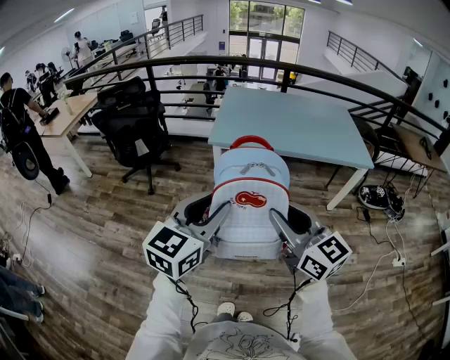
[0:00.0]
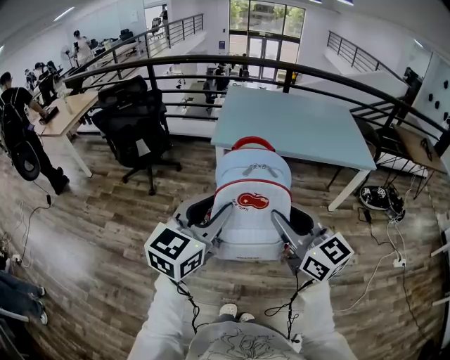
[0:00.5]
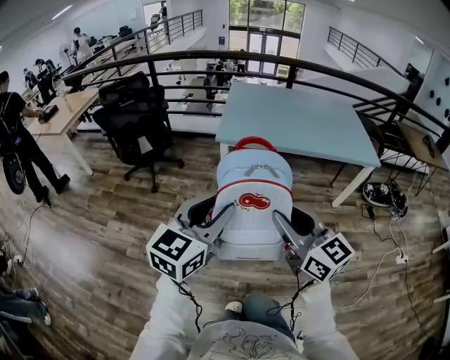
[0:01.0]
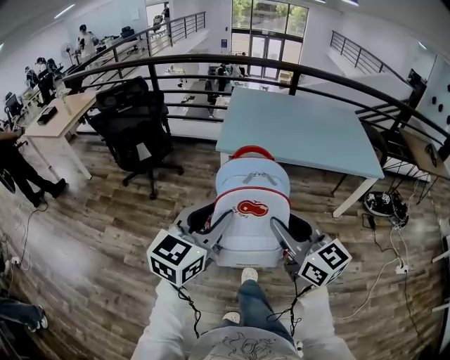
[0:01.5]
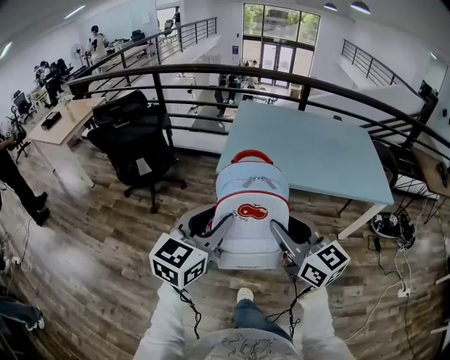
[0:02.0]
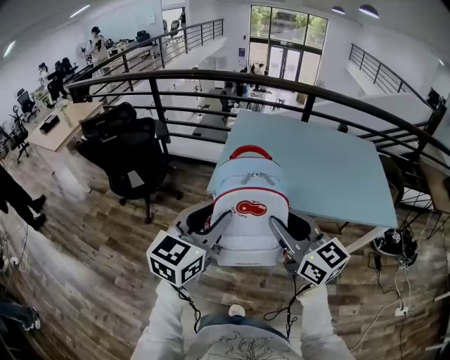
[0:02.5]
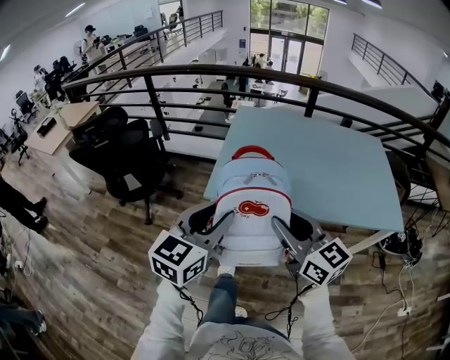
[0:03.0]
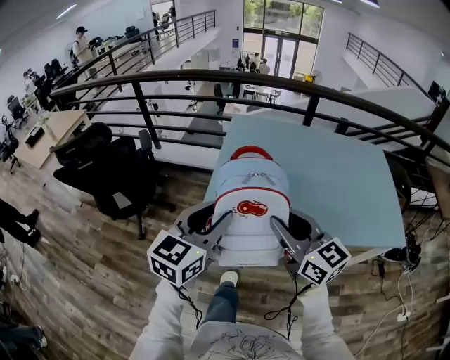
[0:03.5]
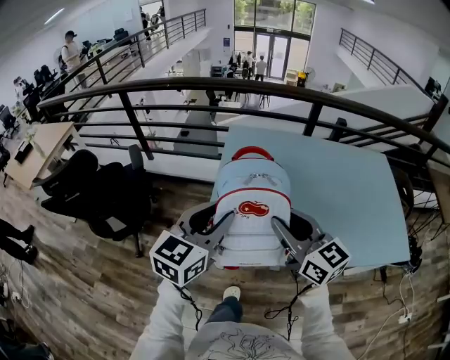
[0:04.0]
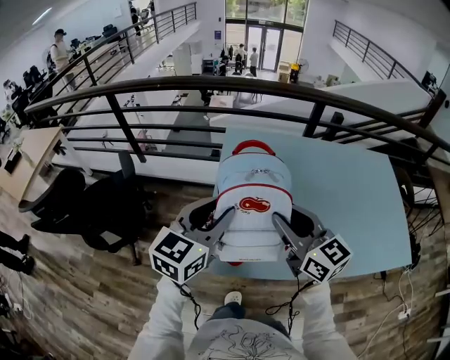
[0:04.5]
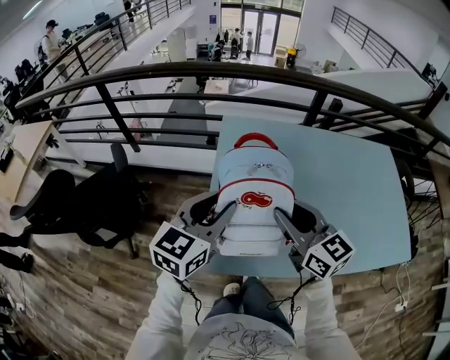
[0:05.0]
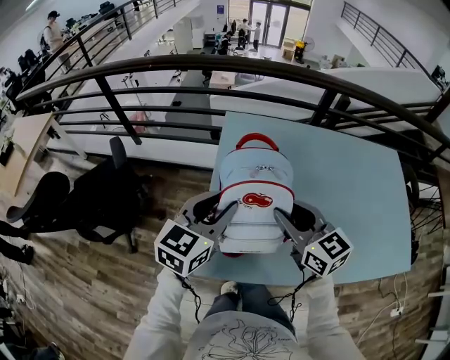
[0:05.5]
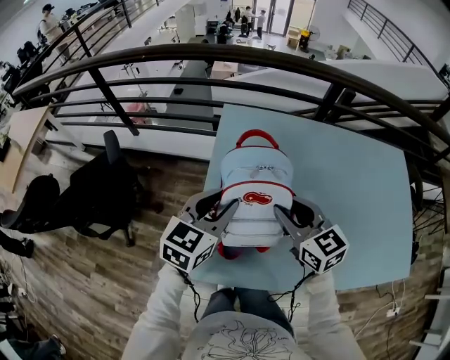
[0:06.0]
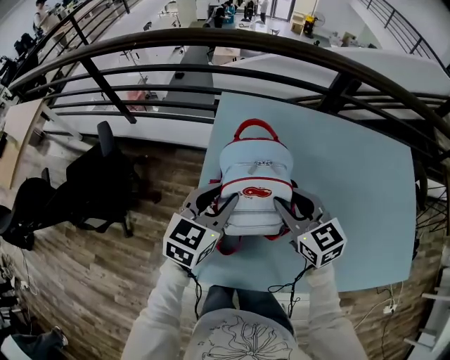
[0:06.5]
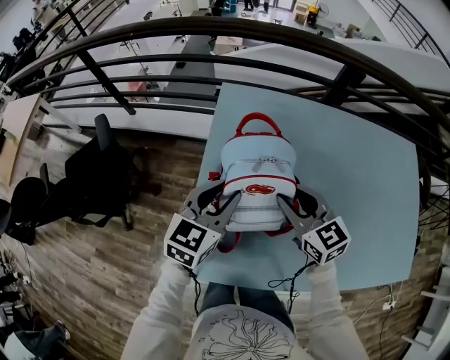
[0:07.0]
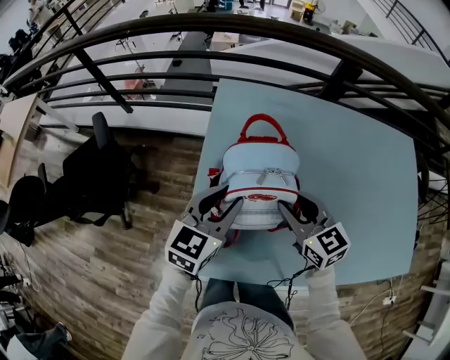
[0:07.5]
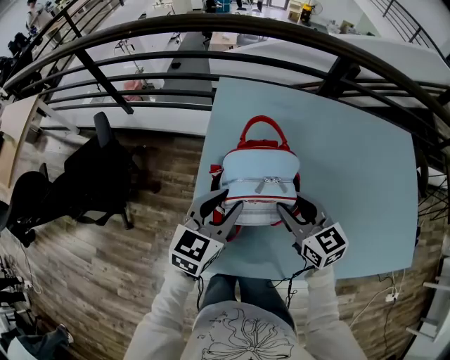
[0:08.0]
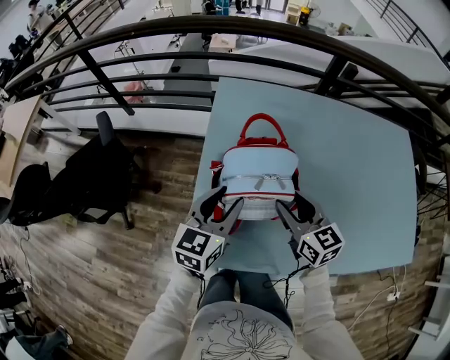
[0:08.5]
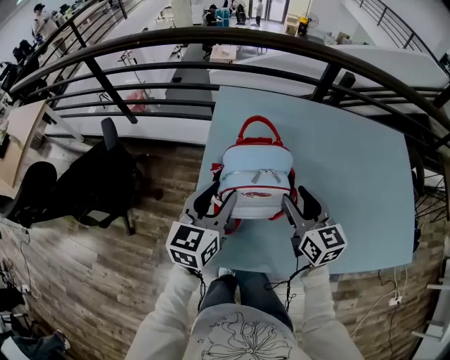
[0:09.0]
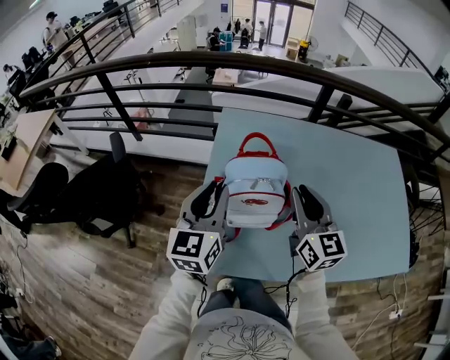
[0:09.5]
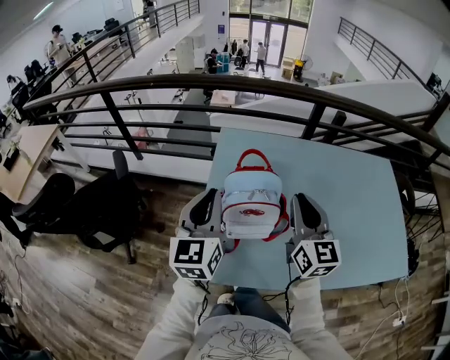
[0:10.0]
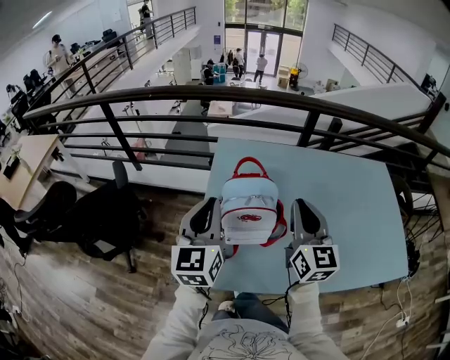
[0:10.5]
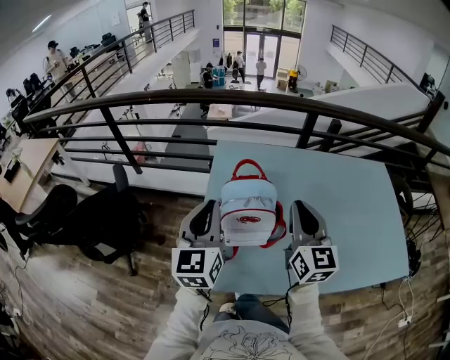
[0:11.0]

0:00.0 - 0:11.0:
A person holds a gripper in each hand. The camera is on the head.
0:00.0 - 0:02.0: Both grippers travel together forward, some 25 cm.
0:02.0 - 0:03.5: The grippers both shift forward by some 35 cm.
0:03.5 - 0:05.5: The grippers both shift forward by some 35 cm.
0:05.5 - 0:07.5: Both grippers travel together downward and forward, roughly 15 cm.
0:07.5 - 0:09.0: The right gripper moves some 5 cm. Meanwhile the left gripper shifts by roughly 5 cm.
0:09.0 - 0:11.0: Both grippers travel together upward, some 15 cm. The right gripper turns by some 20 degrees, and closes. Meanwhile the left gripper turns by roughly 20 degrees, and closes.

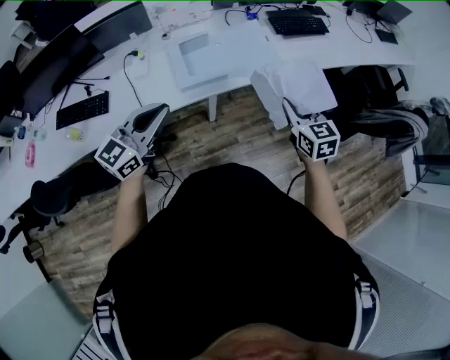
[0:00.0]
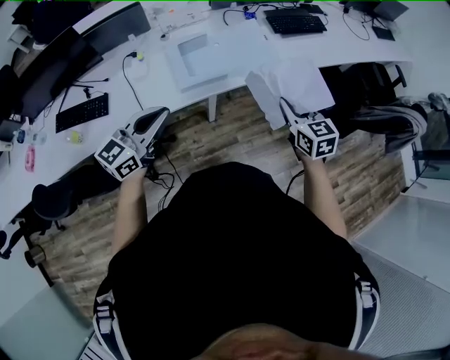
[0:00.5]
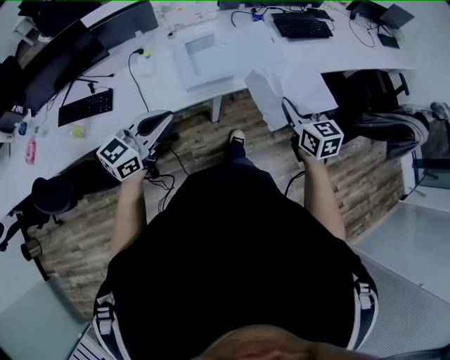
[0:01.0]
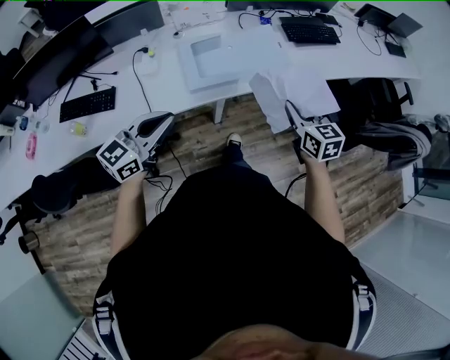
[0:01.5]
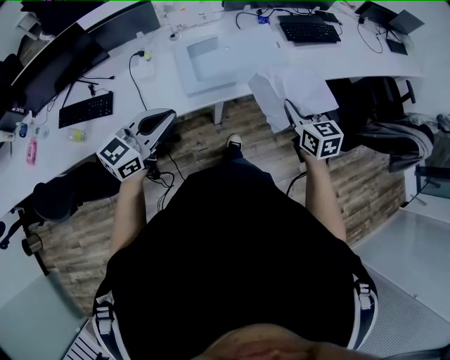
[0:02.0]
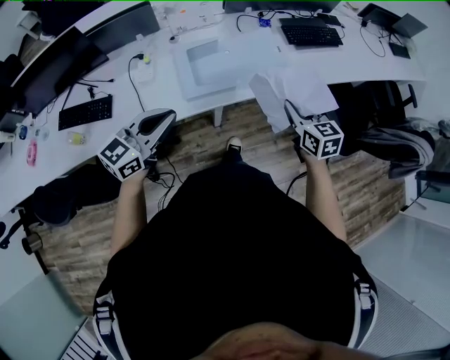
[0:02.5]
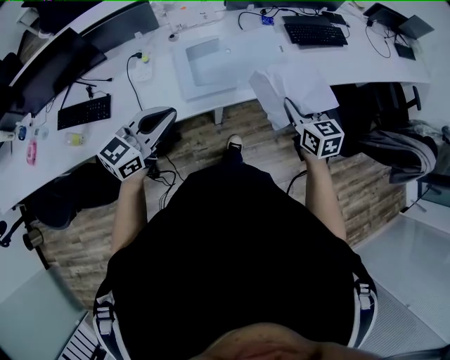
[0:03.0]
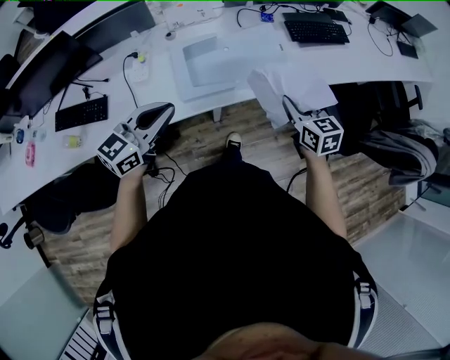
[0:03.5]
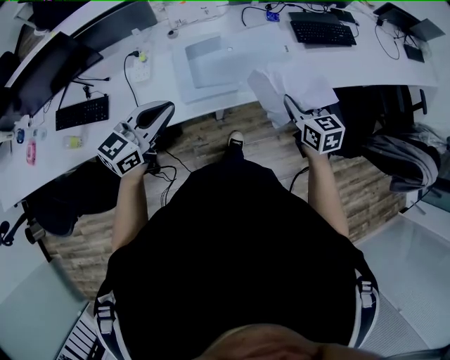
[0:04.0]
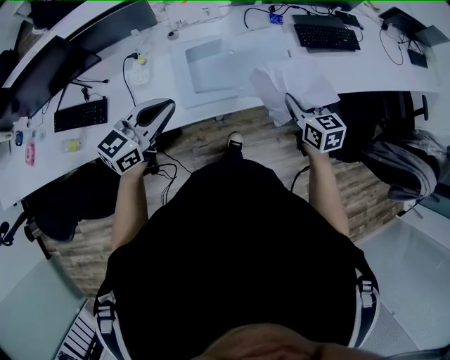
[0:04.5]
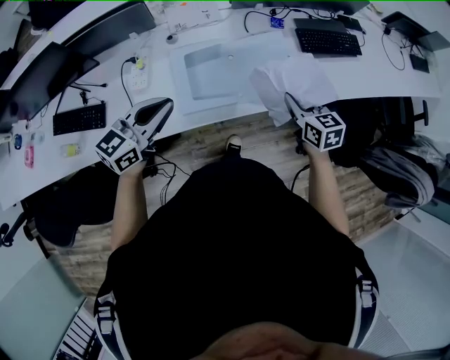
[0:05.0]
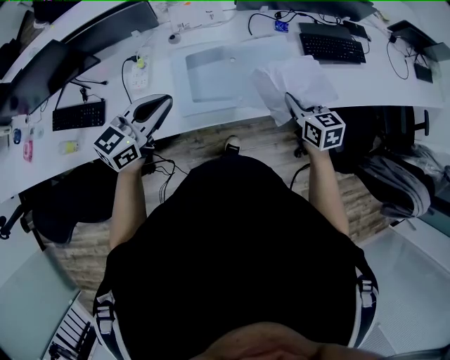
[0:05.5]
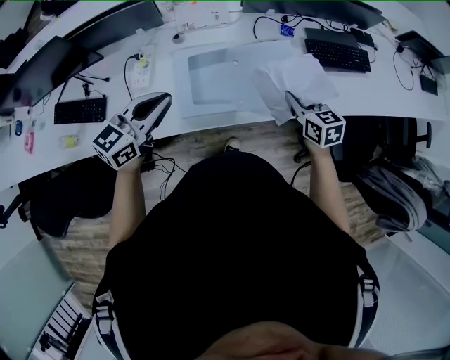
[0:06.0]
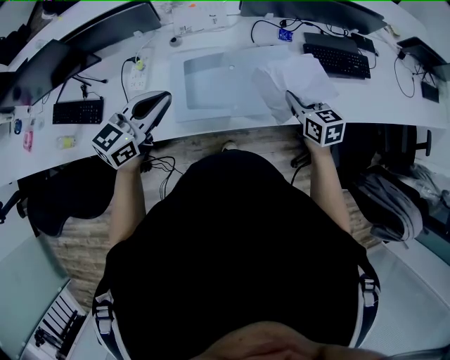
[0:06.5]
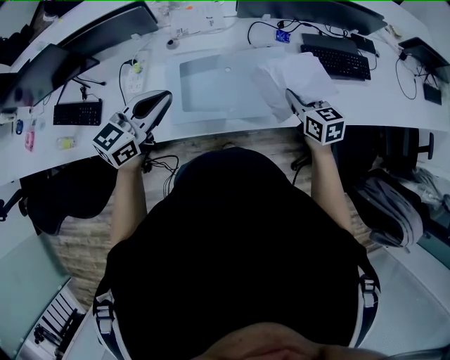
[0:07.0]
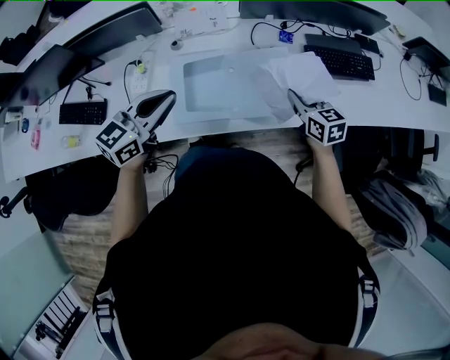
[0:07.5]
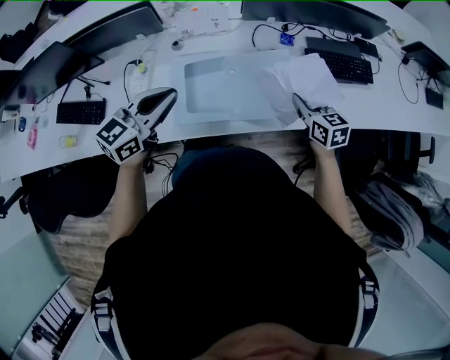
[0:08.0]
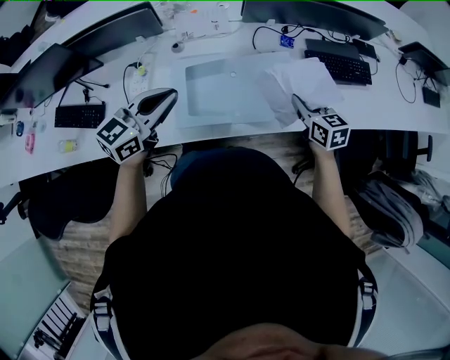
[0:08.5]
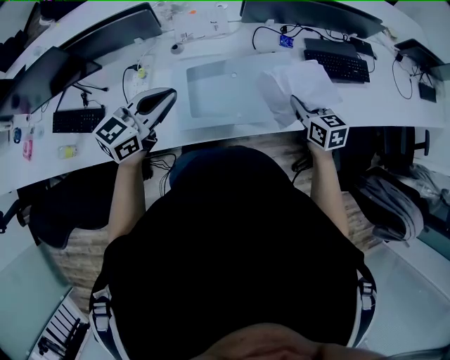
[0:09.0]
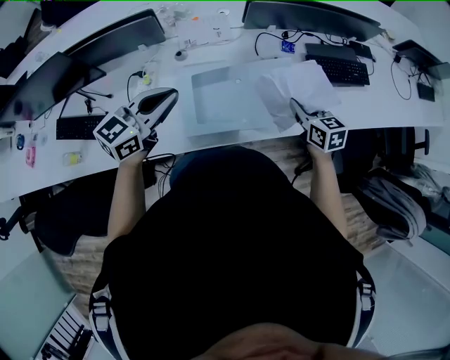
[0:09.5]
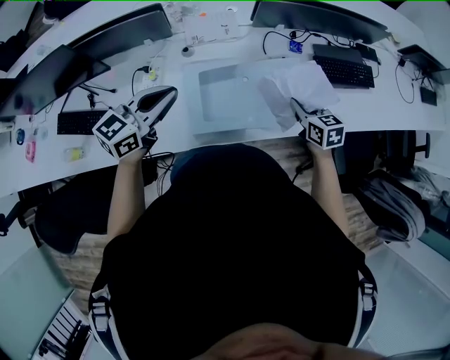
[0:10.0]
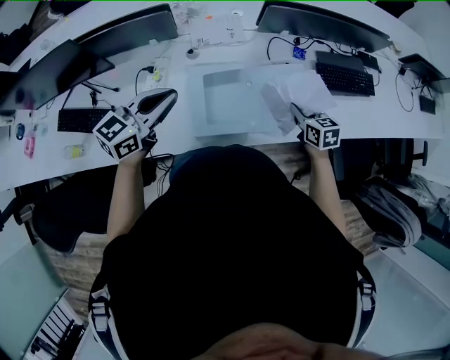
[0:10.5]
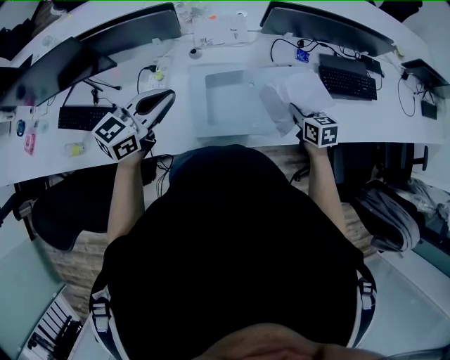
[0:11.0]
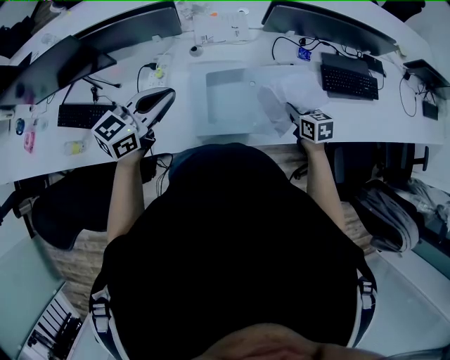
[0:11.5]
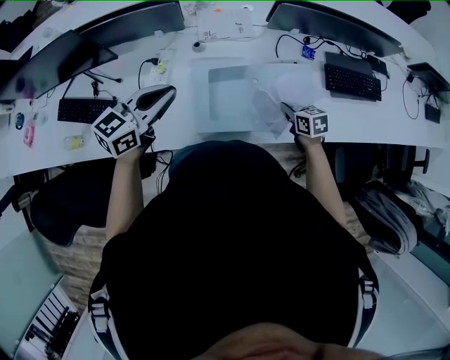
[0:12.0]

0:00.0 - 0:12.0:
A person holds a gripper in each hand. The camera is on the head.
0:00.0 - 0:02.0: The right gripper goes about 5 cm forward.
0:02.0 - 0:04.0: Both grippers move forward, roughly 10 cm.
0:04.0 - 0:06.0: Both grippers move forward, some 15 cm.
0:06.0 - 0:08.0: Both grippers travel together to the right, some 5 cm.
0:08.0 - 0:10.0: The grippers both shift to the left by roughly 10 cm.
0:10.0 - 0:12.0: The right gripper travels downward by some 10 cm.

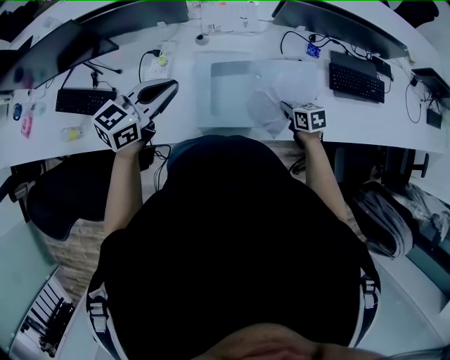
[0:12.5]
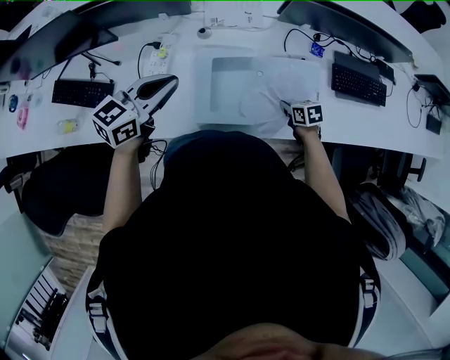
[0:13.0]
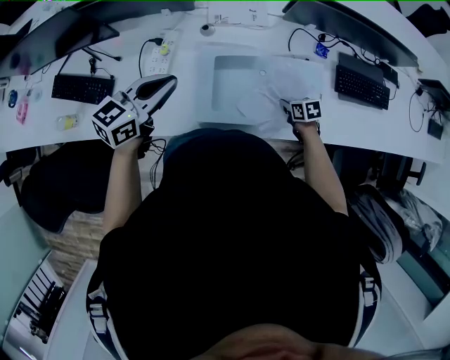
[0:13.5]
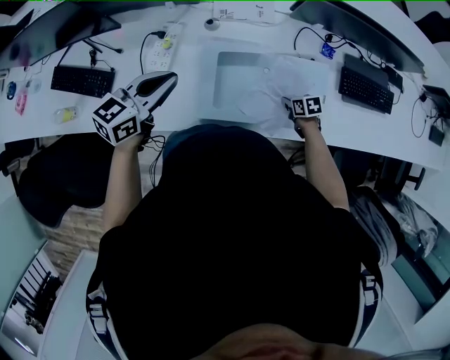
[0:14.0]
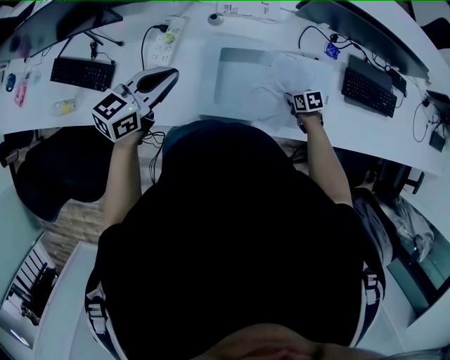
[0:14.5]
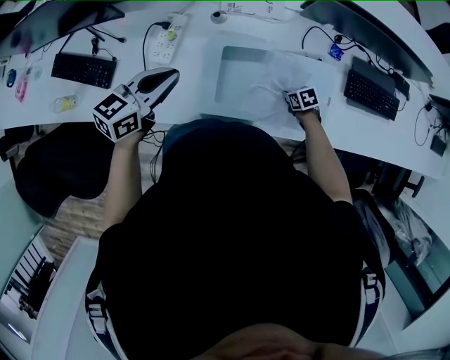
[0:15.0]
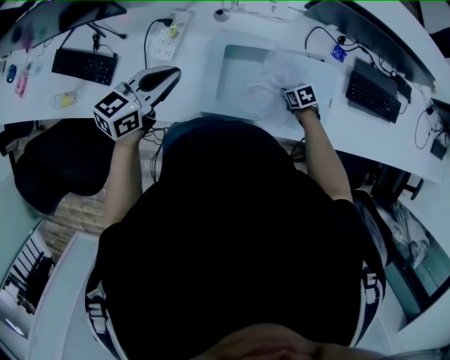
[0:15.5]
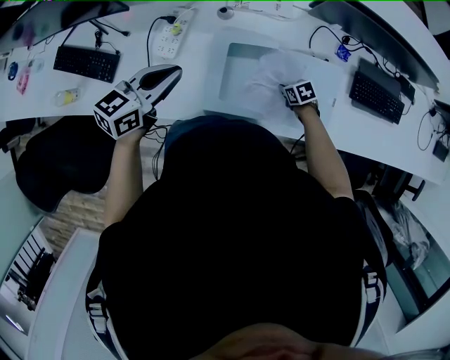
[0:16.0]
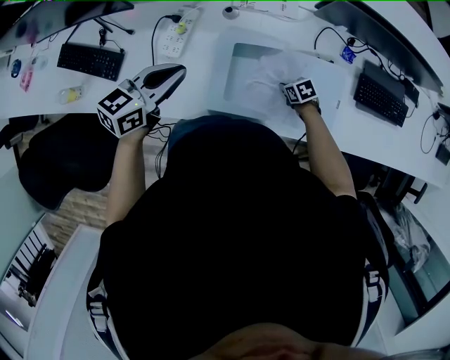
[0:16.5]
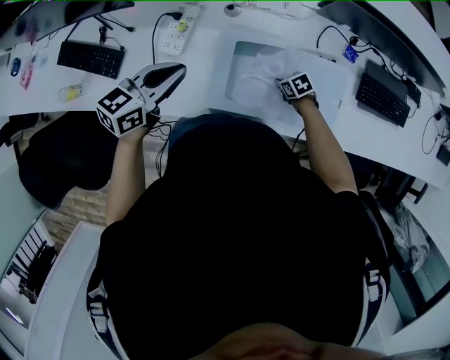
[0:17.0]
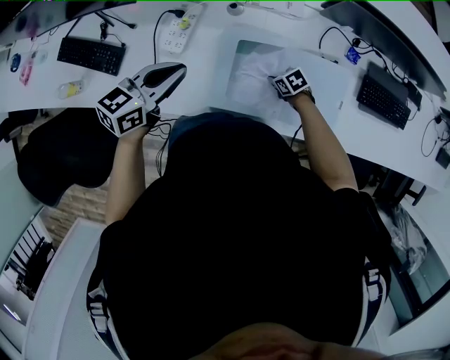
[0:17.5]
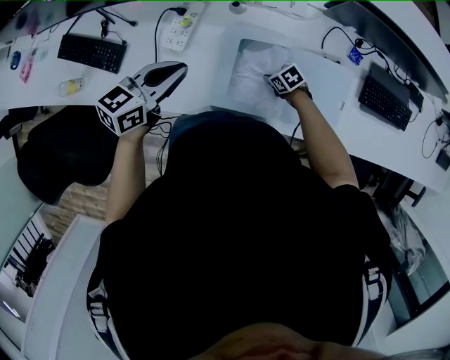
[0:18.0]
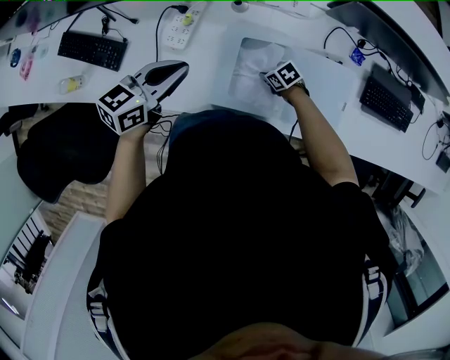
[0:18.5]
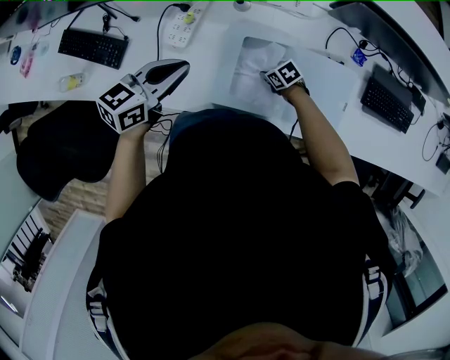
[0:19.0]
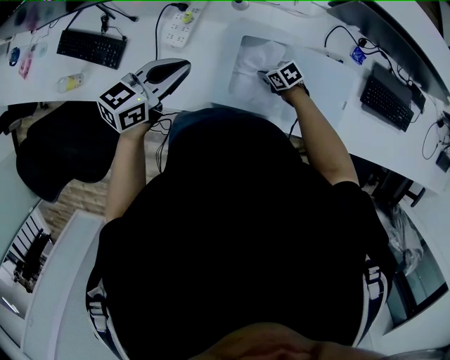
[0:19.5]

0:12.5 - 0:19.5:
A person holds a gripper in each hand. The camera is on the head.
0:12.5 - 0:14.5: The right gripper is displaced downward by about 10 cm, while the left gripper ends up about 5 cm from where it was.
0:14.5 - 0:16.0: The right gripper shifts by approximately 5 cm.
0:16.0 - 0:17.5: The right gripper moves some 10 cm.
0:17.5 - 0:19.5: The right gripper ends up approximately 5 cm from where it was.
